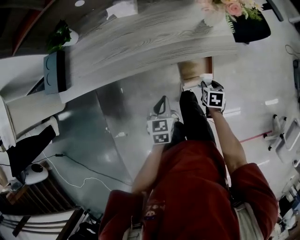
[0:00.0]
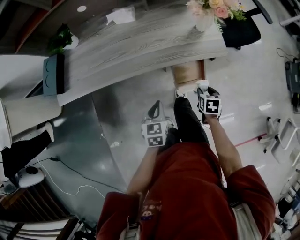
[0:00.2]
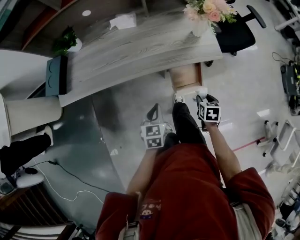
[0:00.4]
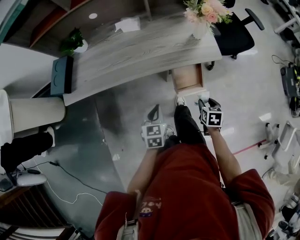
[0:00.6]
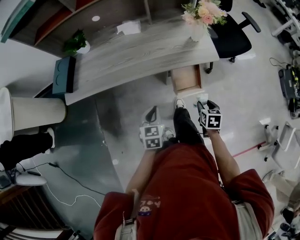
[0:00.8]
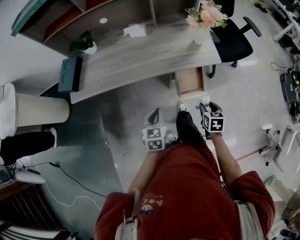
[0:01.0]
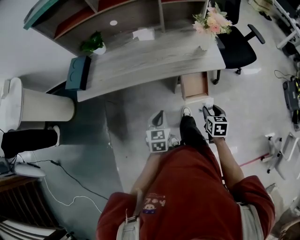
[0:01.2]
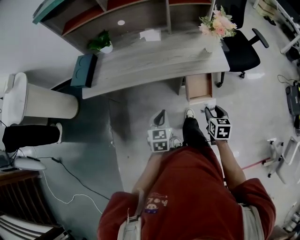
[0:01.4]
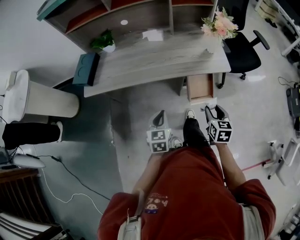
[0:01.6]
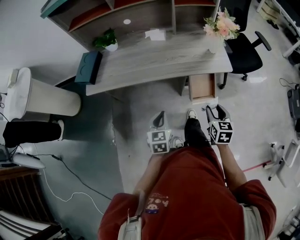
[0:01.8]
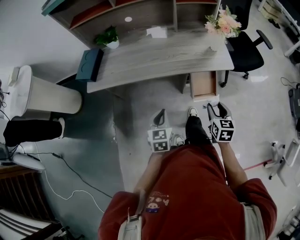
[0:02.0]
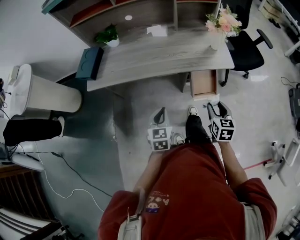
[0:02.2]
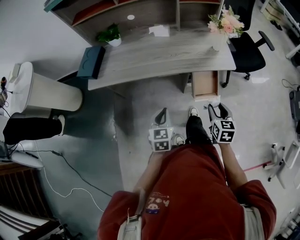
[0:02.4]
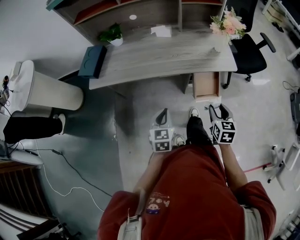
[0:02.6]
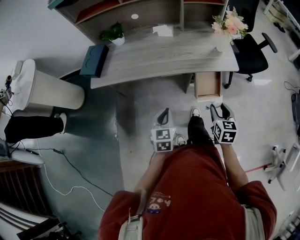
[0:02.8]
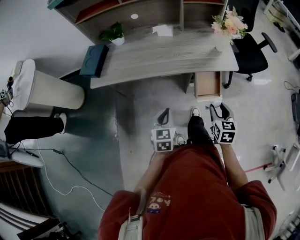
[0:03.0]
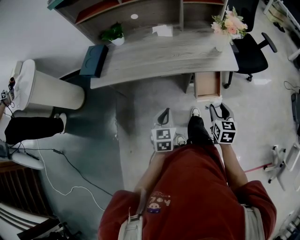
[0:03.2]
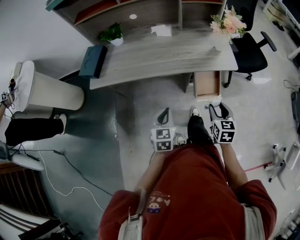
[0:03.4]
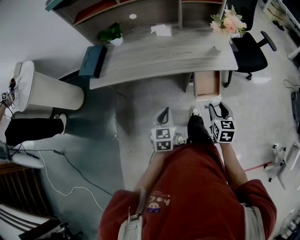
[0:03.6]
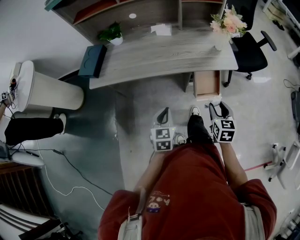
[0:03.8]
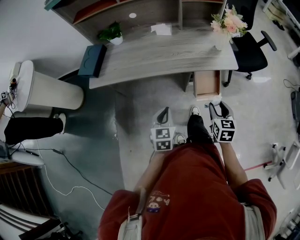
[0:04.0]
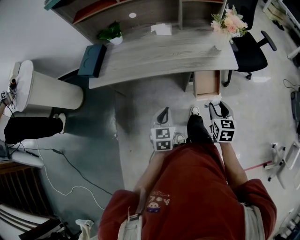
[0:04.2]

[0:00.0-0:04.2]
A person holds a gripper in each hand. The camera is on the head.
0:00.0 to 0:01.4: The left gripper is displaced upward, backward and to the left by approximately 15 cm. The right gripper shifts some 25 cm upward and backward, and rotates approximately 20 degrees.
0:01.4 to 0:02.8: The grippers move only a little.
0:02.8 to 0:04.2: Both grippers stay put.

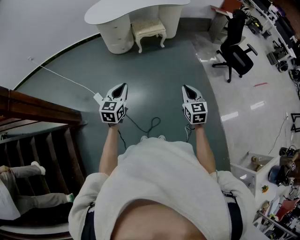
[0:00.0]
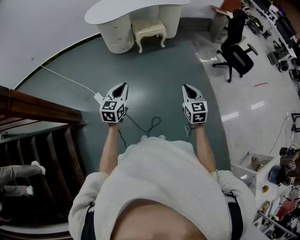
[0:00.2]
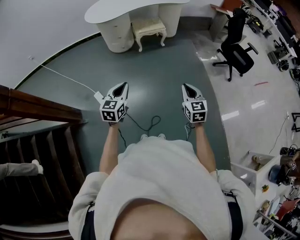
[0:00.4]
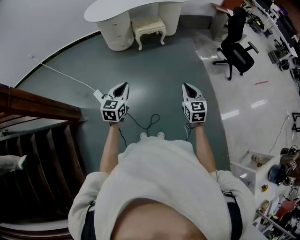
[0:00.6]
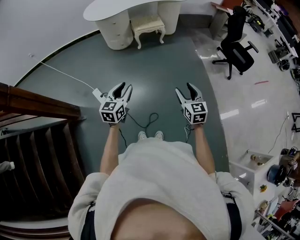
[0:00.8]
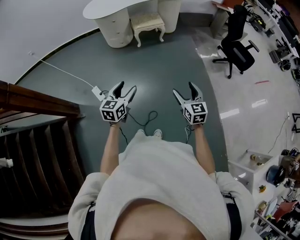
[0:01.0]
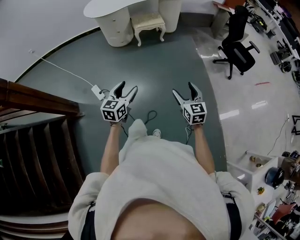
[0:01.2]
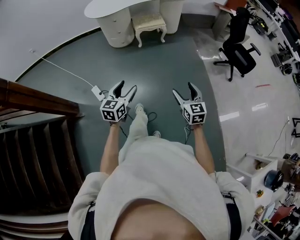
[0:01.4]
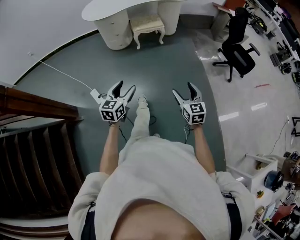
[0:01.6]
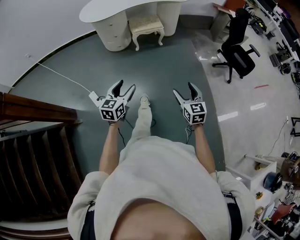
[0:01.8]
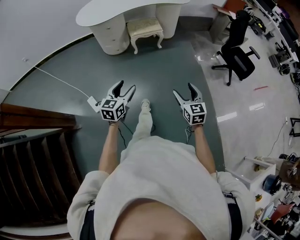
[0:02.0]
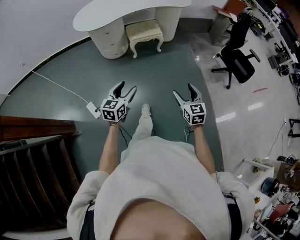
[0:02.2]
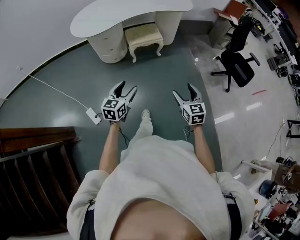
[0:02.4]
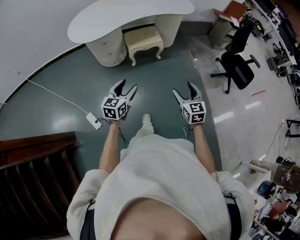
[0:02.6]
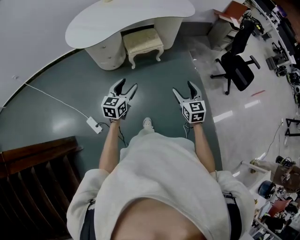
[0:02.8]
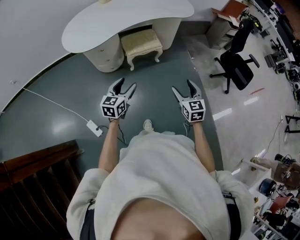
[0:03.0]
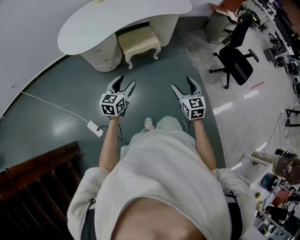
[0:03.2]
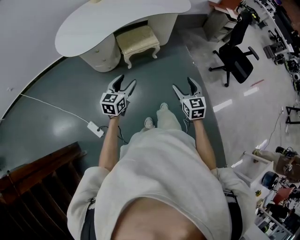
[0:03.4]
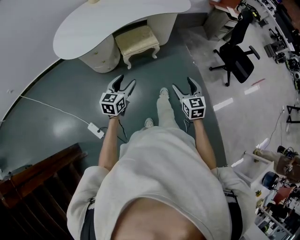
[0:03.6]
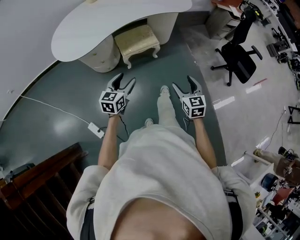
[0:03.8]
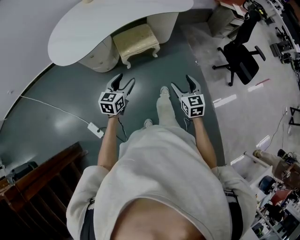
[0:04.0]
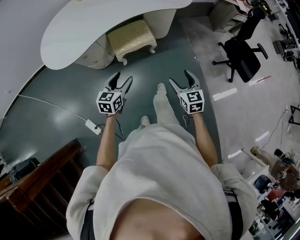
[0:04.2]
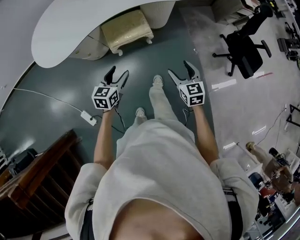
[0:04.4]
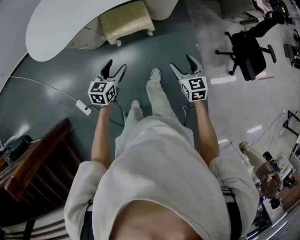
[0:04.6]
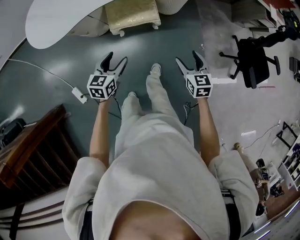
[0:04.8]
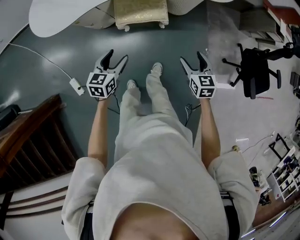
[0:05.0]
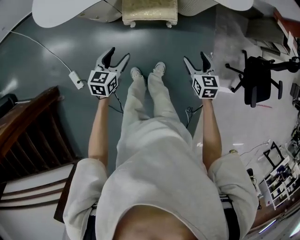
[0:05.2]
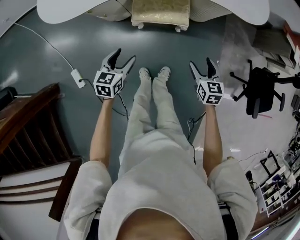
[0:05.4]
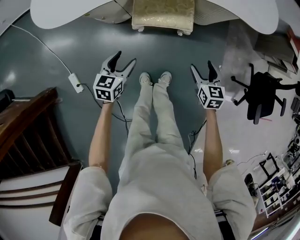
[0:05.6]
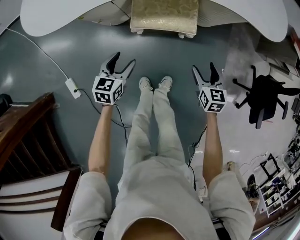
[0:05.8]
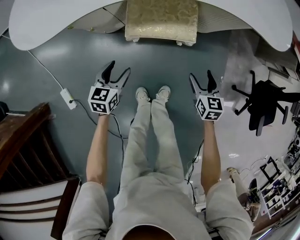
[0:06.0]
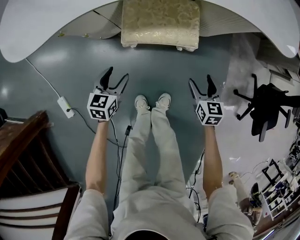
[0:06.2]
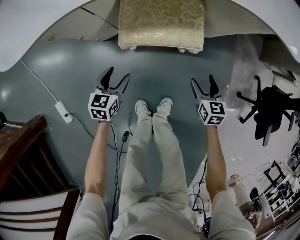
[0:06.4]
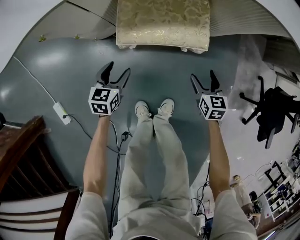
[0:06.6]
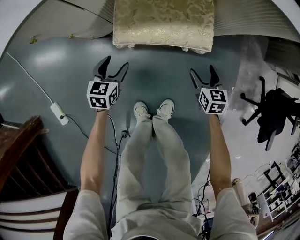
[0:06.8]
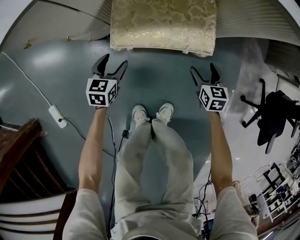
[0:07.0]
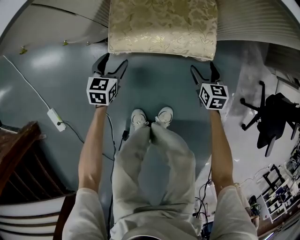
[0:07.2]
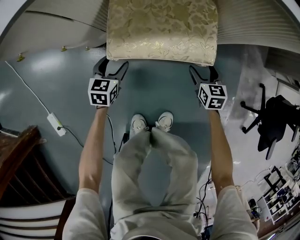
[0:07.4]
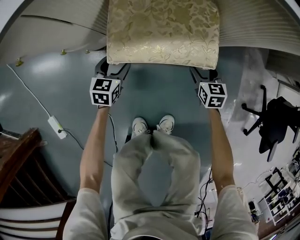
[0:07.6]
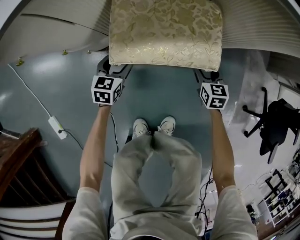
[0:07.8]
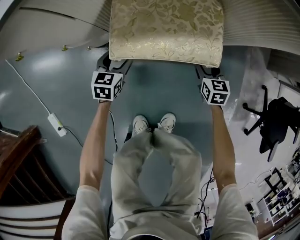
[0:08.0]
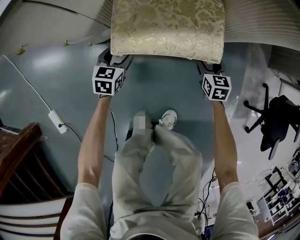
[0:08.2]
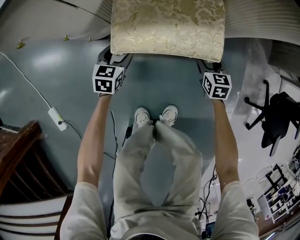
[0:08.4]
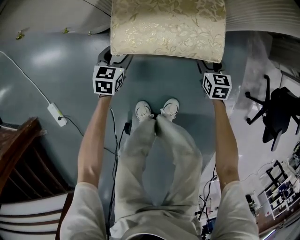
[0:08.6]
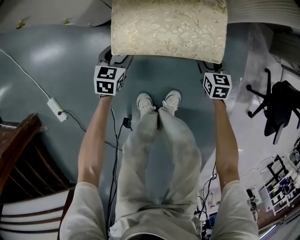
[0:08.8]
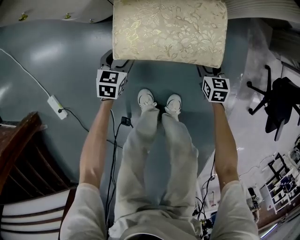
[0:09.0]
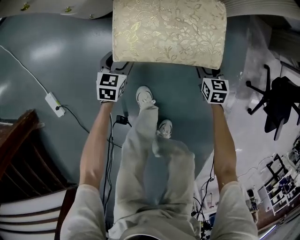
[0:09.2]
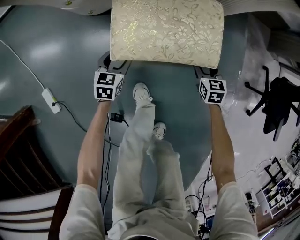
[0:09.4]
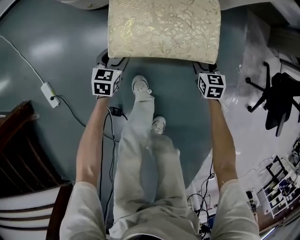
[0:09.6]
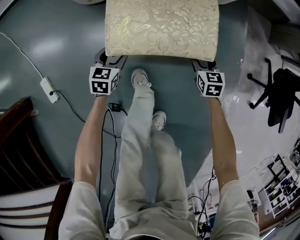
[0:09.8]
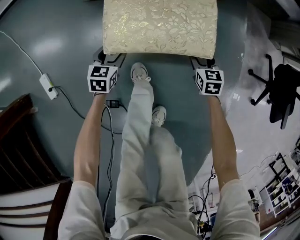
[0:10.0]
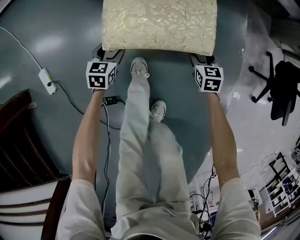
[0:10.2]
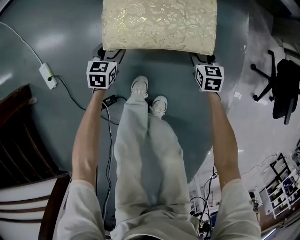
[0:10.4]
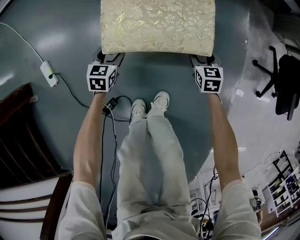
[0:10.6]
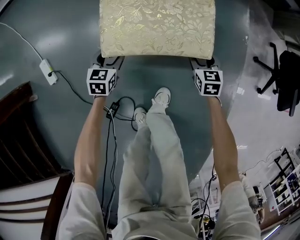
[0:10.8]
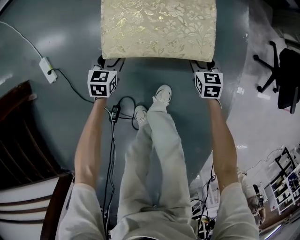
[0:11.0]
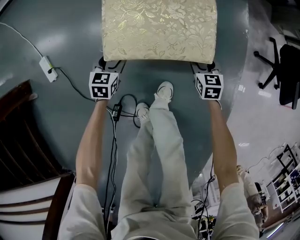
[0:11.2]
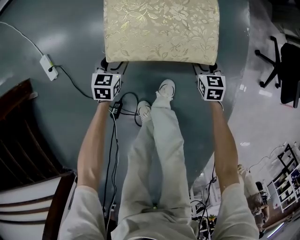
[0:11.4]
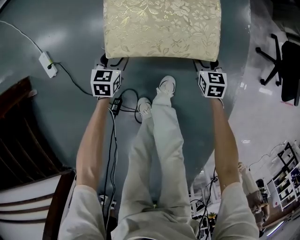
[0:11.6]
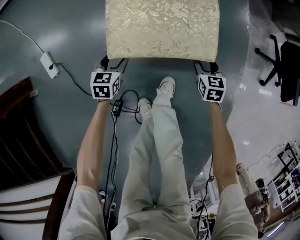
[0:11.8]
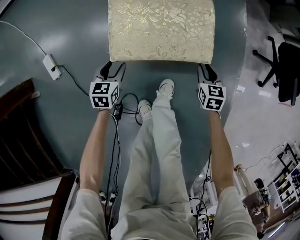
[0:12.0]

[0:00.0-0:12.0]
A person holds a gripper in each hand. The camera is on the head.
0:00.0 to 0:01.6: The left gripper heads to the right, covering about 5 cm, and opens its fingers, while the right gripper changes place by about 5 cm, and opens up.
0:01.6 to 0:03.0: Both grippers are carried forward, some 40 cm.
0:03.0 to 0:04.4: Both grippers travel together forward, some 25 cm.
0:04.4 to 0:06.0: The two grippers go approximately 35 cm downward and forward. The left gripper swivels roughly 20 degrees.
0:06.0 to 0:07.6: Both grippers move downward and forward, roughly 30 cm.
0:07.6 to 0:09.0: The two grippers go some 10 cm backward.
0:09.0 to 0:10.4: Both grippers move forward, roughly 10 cm.
0:10.4 to 0:12.0: The left gripper moves roughly 5 cm, while the right gripper shifts by roughly 5 cm, and closes its fingers.

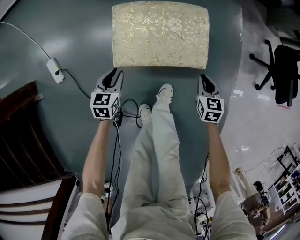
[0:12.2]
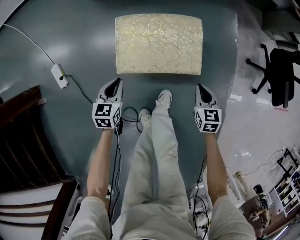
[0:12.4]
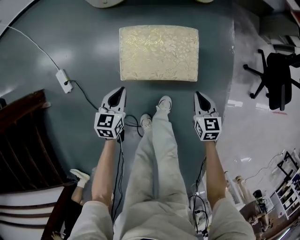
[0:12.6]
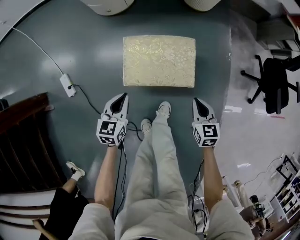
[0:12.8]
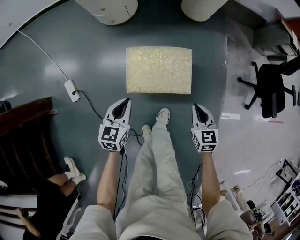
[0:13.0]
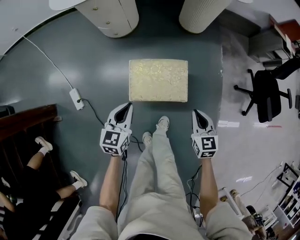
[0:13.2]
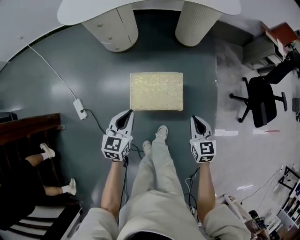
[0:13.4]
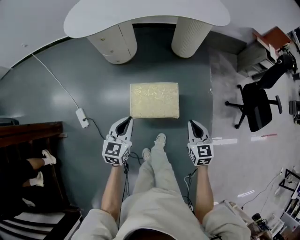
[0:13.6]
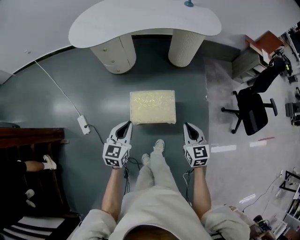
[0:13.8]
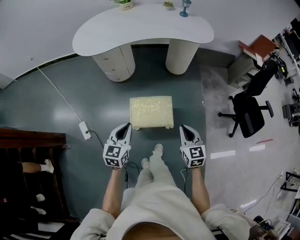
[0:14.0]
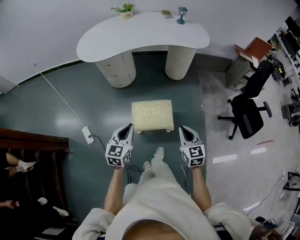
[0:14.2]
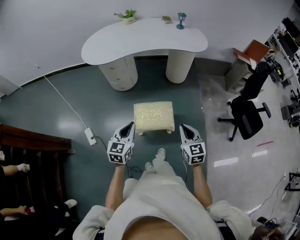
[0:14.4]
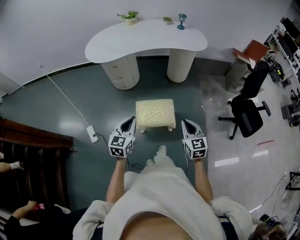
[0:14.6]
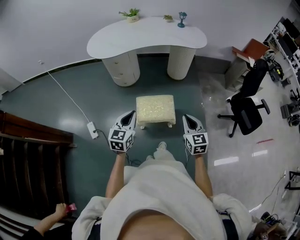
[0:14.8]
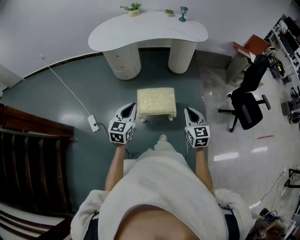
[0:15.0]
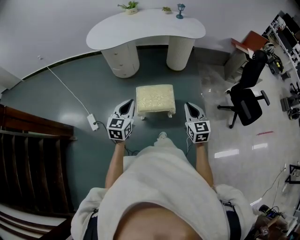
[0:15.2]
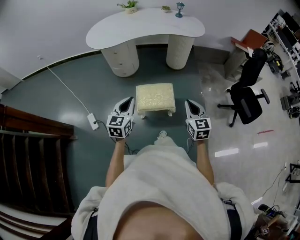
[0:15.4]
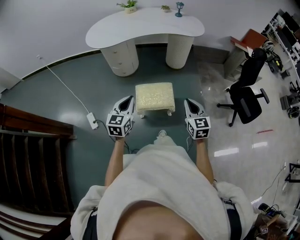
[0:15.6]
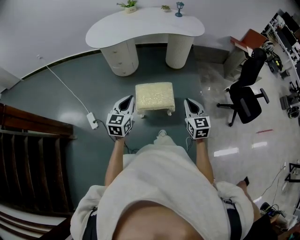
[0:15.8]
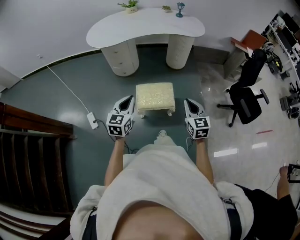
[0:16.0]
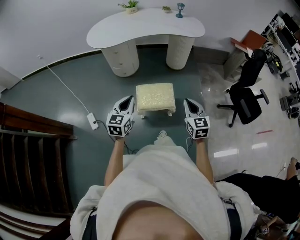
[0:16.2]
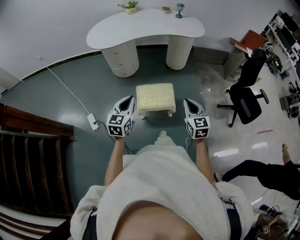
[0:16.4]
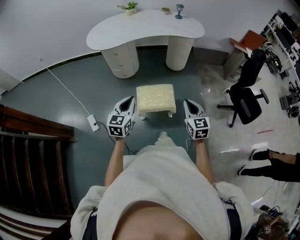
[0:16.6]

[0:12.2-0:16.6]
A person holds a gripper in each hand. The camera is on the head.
0:12.2 to 0:13.6: The grippers both shift upward by approximately 50 cm. The left gripper rotates roughly 20 degrees.
0:13.6 to 0:15.2: Both grippers travel together upward and backward, approximately 25 cm.
0:15.2 to 0:16.6: Both grippers stay about where they are.

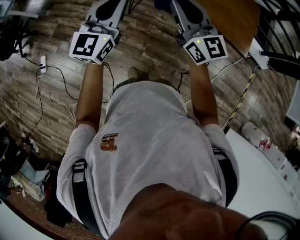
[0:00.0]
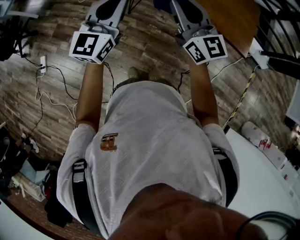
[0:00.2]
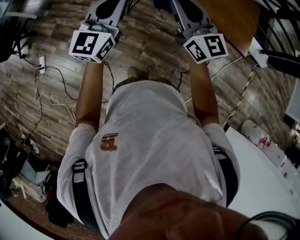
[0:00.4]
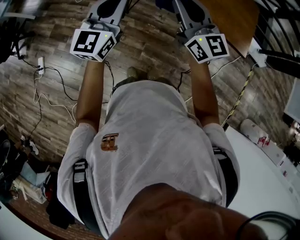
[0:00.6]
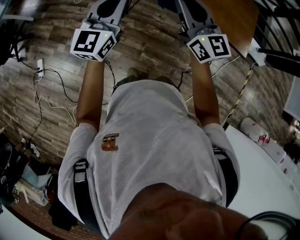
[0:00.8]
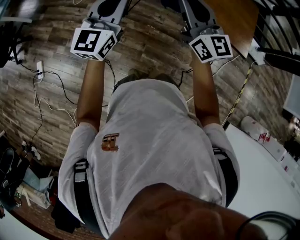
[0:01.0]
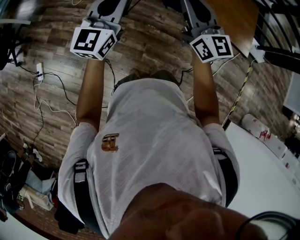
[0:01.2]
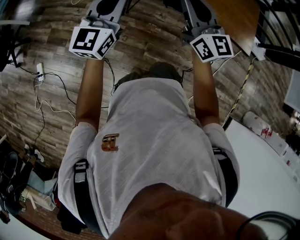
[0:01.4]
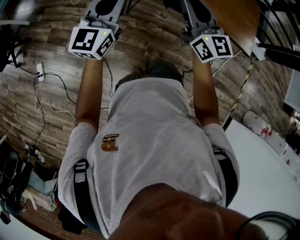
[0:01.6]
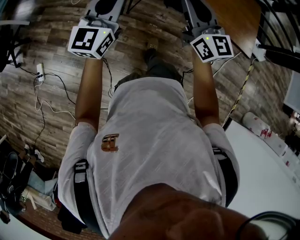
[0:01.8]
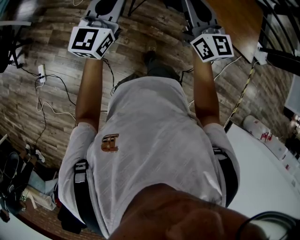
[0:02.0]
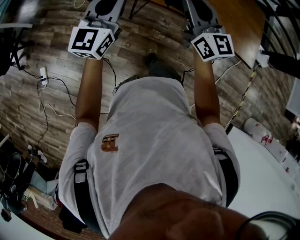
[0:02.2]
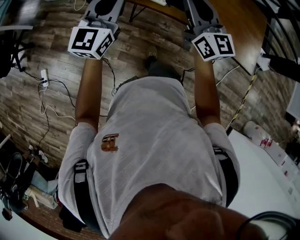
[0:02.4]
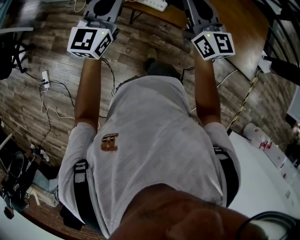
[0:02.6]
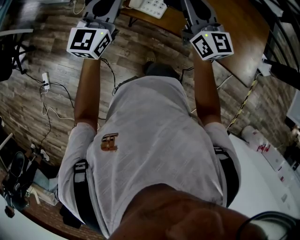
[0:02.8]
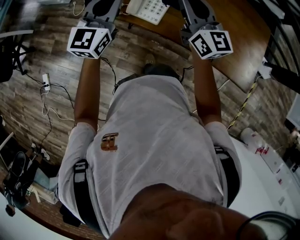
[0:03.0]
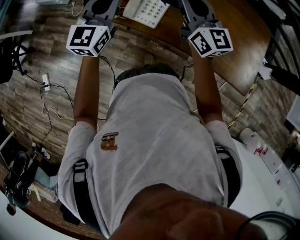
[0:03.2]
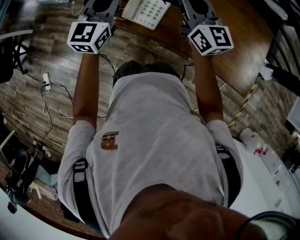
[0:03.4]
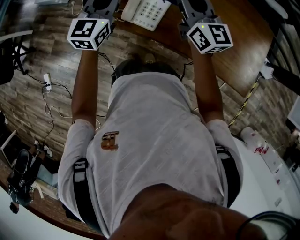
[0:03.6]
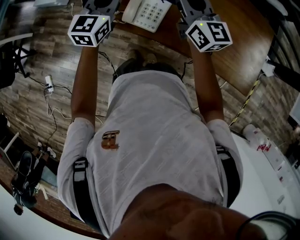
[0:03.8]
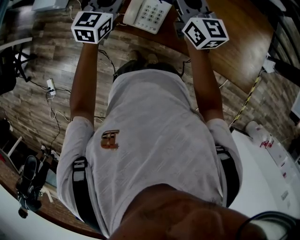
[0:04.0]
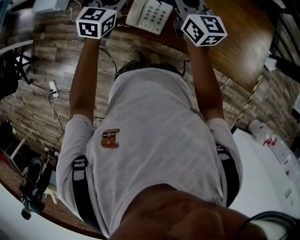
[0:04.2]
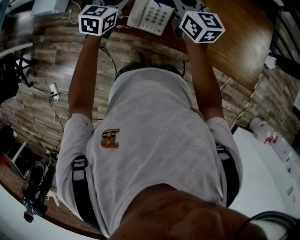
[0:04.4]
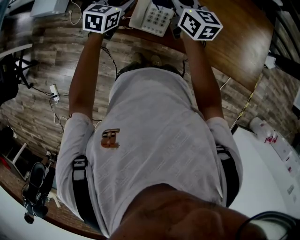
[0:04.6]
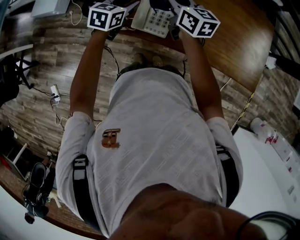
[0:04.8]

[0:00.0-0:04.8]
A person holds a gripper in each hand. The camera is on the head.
0:00.0 to 0:01.6: Both grippers move to the left and forward, some 15 cm.
0:01.6 to 0:03.2: The pair of grippers is taken forward, approximately 40 cm.
0:03.2 to 0:04.8: The right gripper heads forward, downward and to the left, covering approximately 15 cm, and turns by roughly 30 degrees. Meanwhile the left gripper travels downward and forward by roughly 20 cm, tilts its fingers approximately 30 degrees downward, and opens up.
